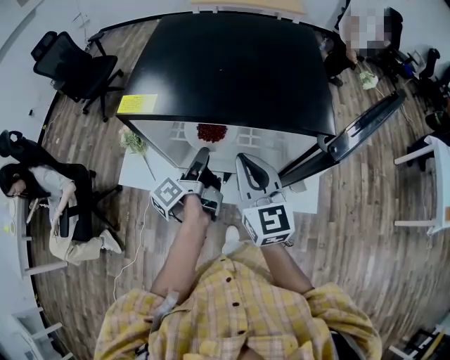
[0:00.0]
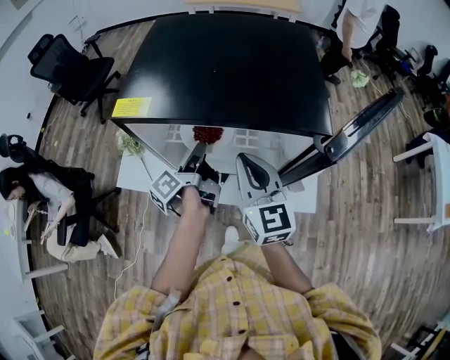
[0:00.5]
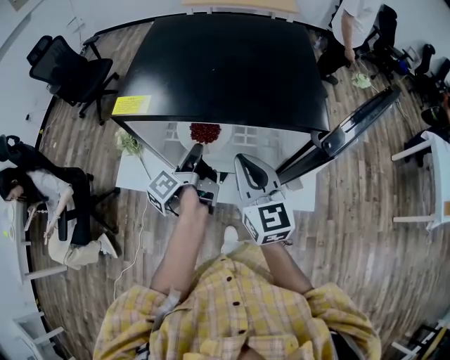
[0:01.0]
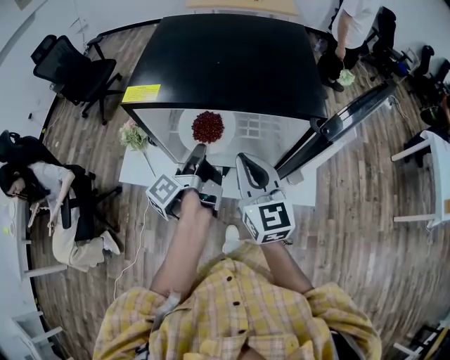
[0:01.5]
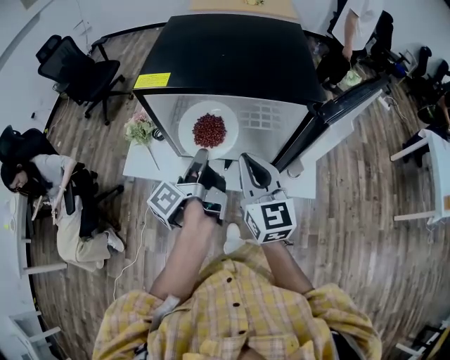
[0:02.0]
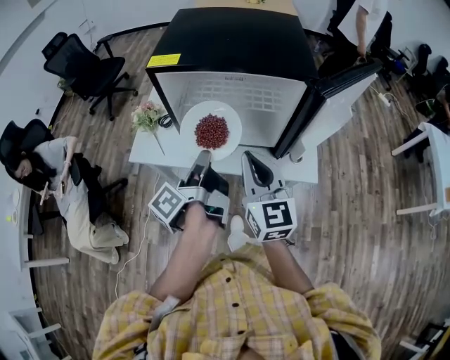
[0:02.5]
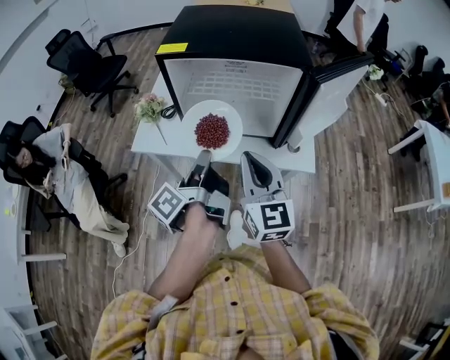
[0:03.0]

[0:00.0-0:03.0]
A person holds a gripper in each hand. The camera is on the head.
0:00.0 to 0:01.5: The left gripper closes.
0:01.5 to 0:03.0: The grippers both shift backward by roughly 20 cm.

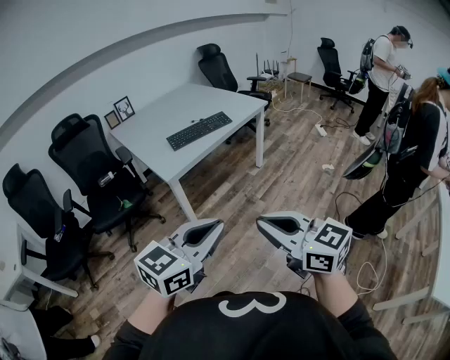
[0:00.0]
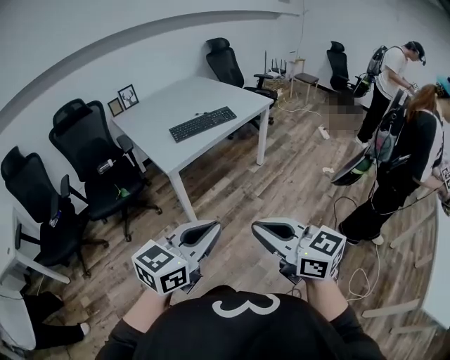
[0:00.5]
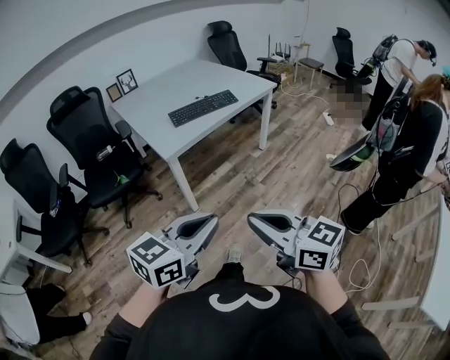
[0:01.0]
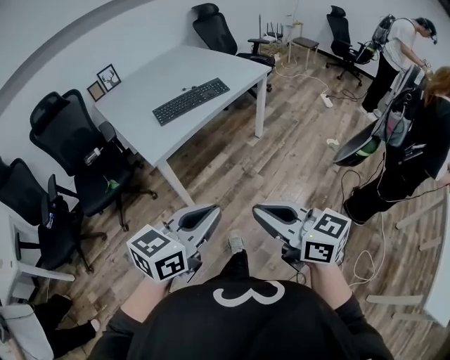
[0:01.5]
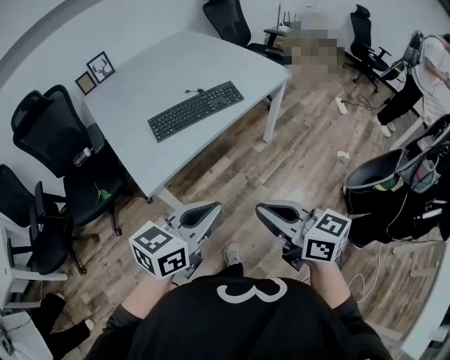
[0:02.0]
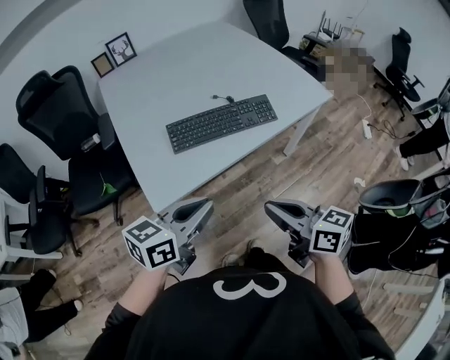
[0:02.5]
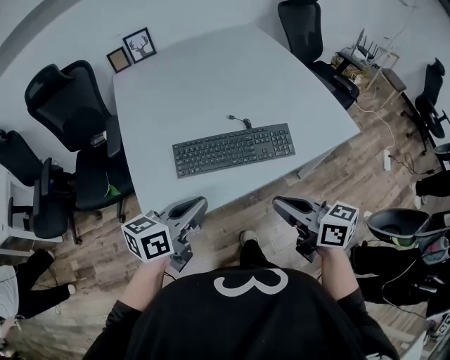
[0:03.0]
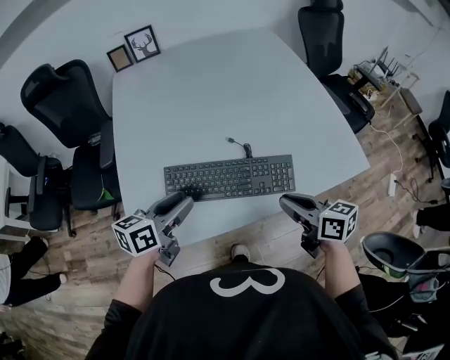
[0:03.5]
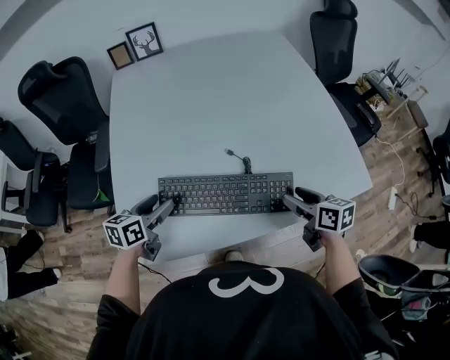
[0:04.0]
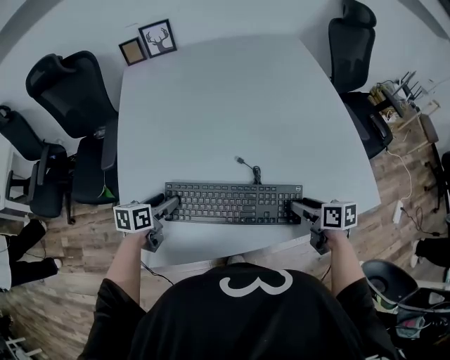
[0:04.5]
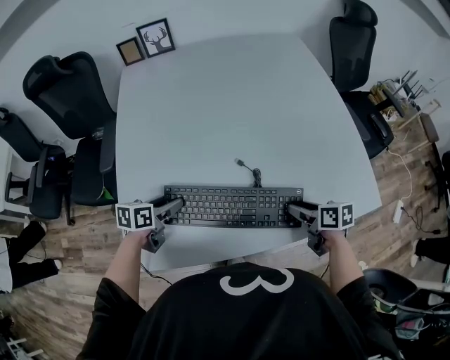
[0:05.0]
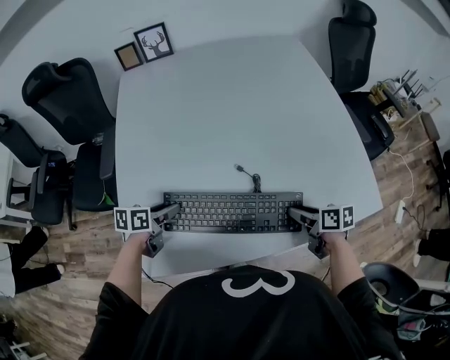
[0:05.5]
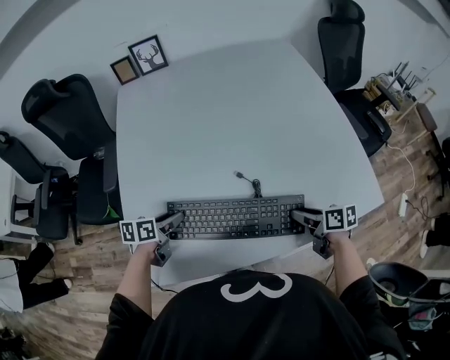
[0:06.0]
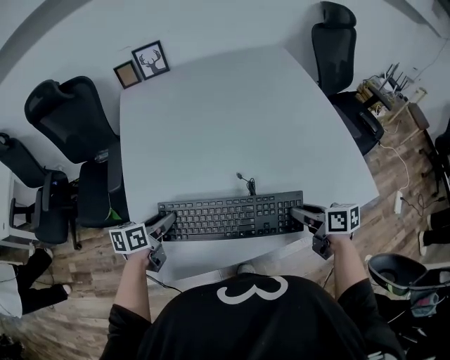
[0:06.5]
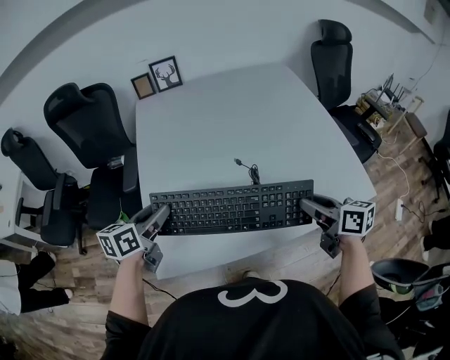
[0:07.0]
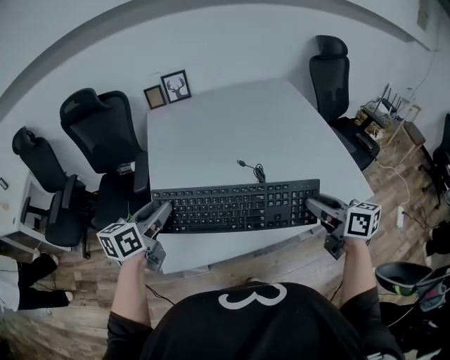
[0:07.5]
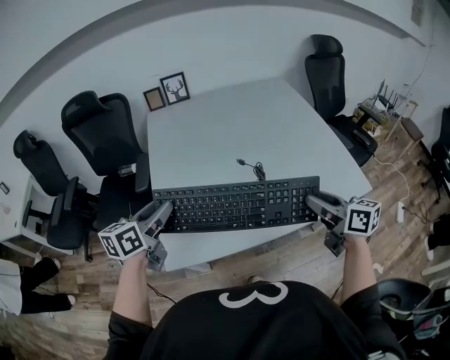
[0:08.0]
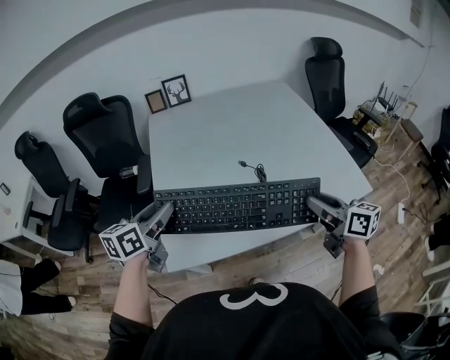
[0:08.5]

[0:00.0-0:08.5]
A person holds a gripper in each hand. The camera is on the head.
0:00.0 to 0:02.0: Both grippers move forward, some 30 cm.
0:02.0 to 0:04.0: The pair of grippers is taken approximately 50 cm. The left gripper turns by about 50 degrees, and opens its fingers. Meanwhile the right gripper rotates approximately 30 degrees, and opens up.
0:04.0 to 0:06.5: The right gripper closes.
0:06.5 to 0:08.5: The left gripper heads upward, covering some 20 cm, and swivels approximately 30 degrees; the right gripper travels upward and backward by about 20 cm, and turns by roughly 30 degrees.

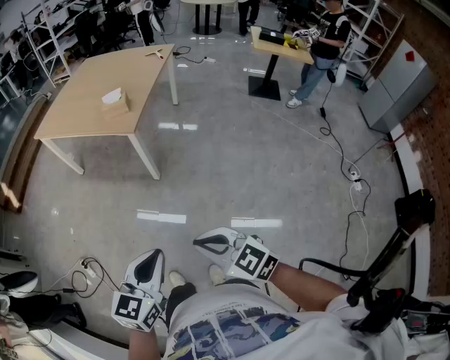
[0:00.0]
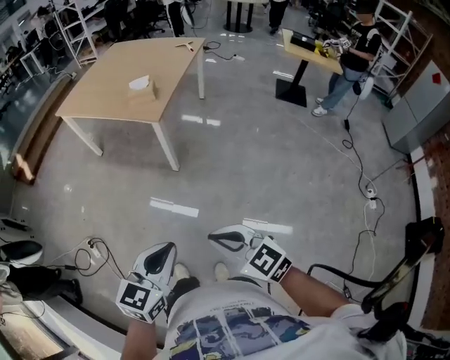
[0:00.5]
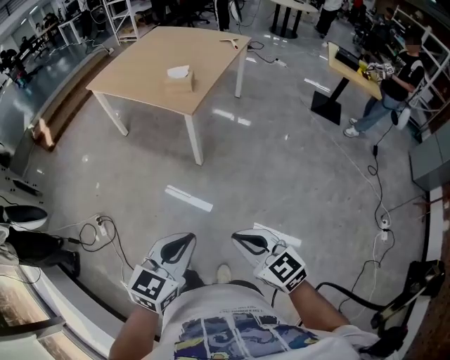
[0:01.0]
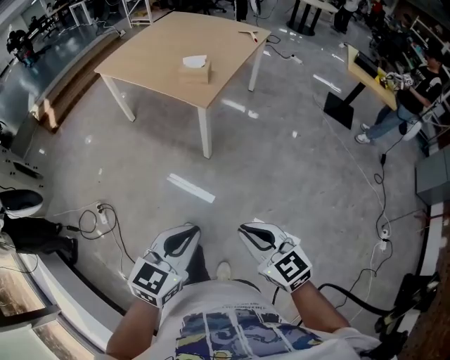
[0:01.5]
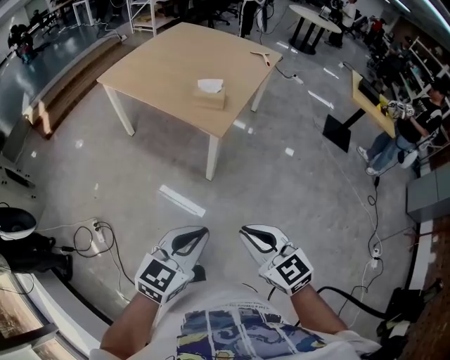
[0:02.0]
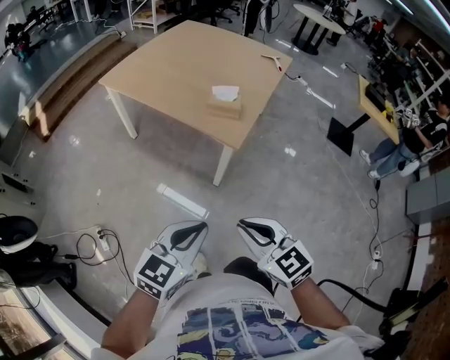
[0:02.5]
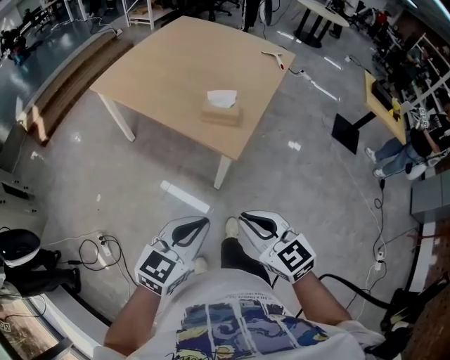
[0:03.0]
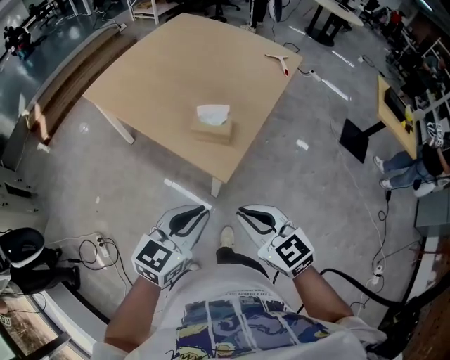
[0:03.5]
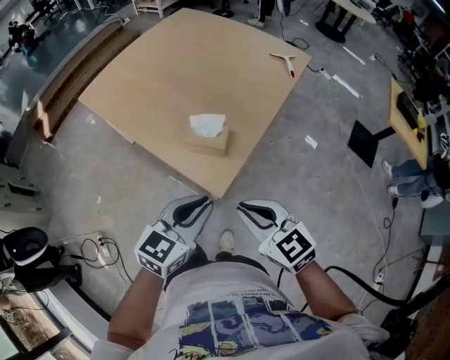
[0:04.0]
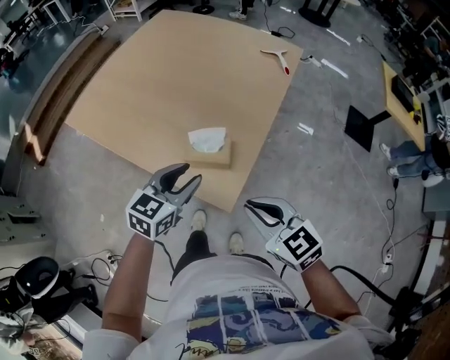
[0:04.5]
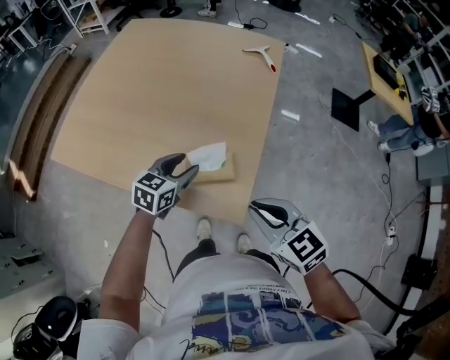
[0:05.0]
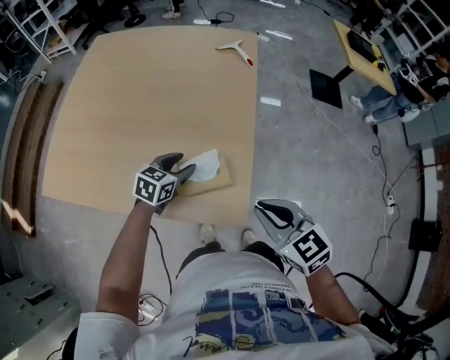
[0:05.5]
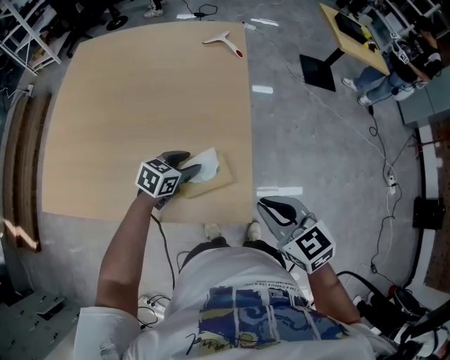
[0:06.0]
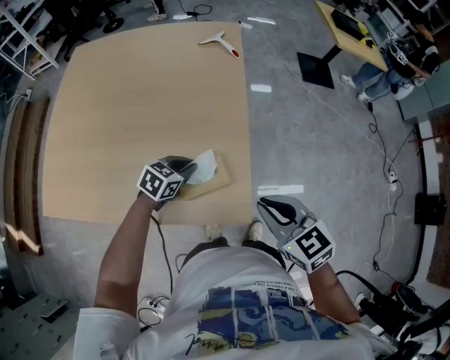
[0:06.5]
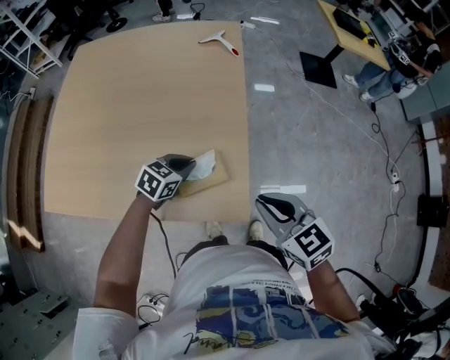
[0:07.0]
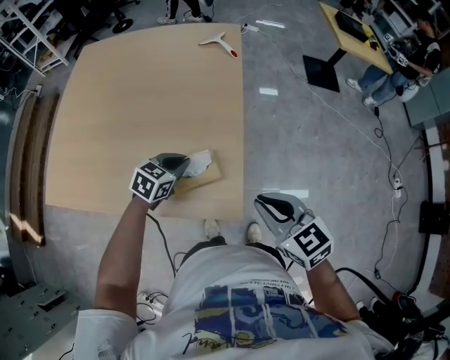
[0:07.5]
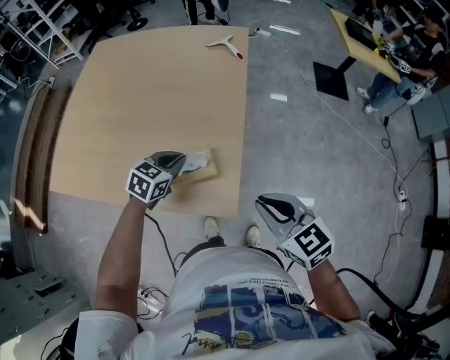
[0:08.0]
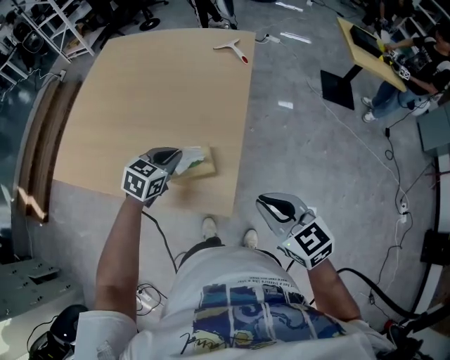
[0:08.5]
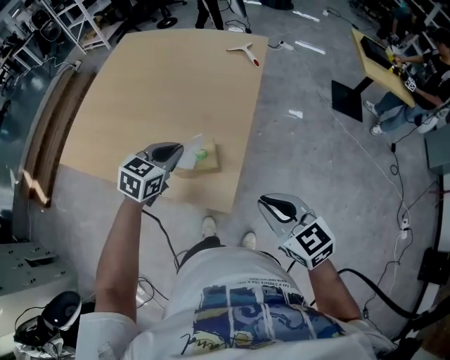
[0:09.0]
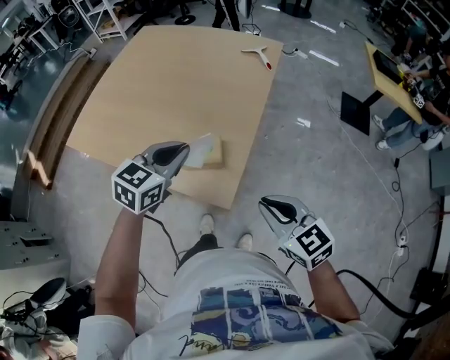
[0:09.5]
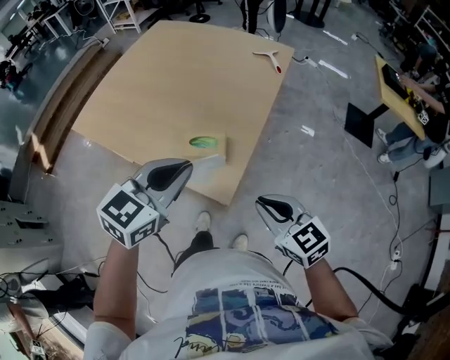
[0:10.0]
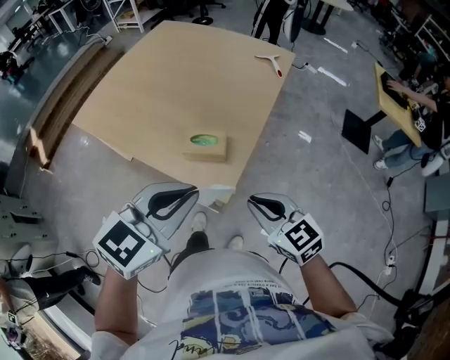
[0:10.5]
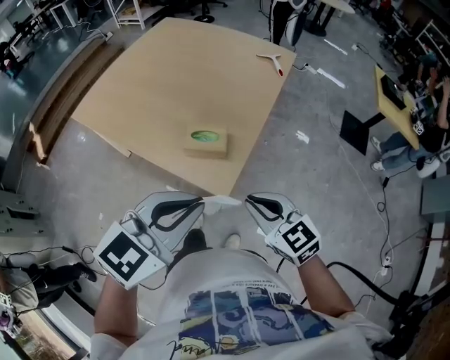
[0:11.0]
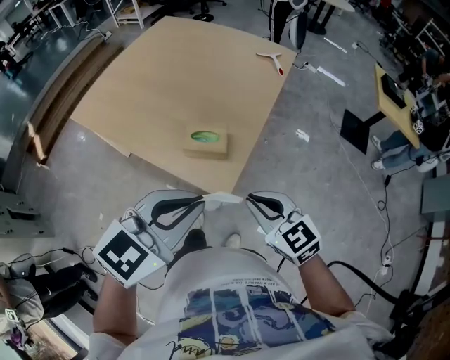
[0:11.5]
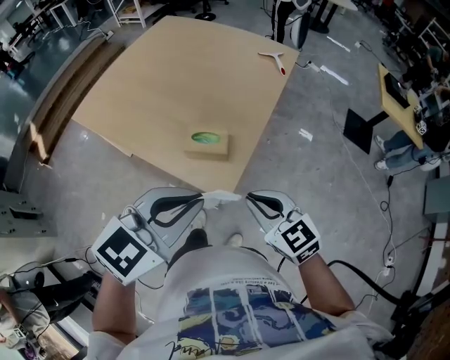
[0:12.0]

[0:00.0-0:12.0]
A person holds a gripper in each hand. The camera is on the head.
0:00.0 to 0:02.0: Both grippers travel together forward, roughly 20 cm.
0:02.0 to 0:04.0: The two grippers go roughly 40 cm forward.
0:04.0 to 0:06.0: The left gripper ends up approximately 35 cm from where it was, rotates approximately 50 degrees, and opens. The right gripper changes place by approximately 15 cm, and rotates roughly 40 degrees.
0:06.0 to 0:08.0: The right gripper goes some 5 cm to the right, while the left gripper shifts about 5 cm upward, and closes.
0:08.0 to 0:10.0: The right gripper travels backward by about 5 cm. Meanwhile the left gripper shifts about 30 cm upward and backward, and changes its angle by some 30 degrees.
0:10.0 to 0:12.0: The left gripper is displaced backward by roughly 10 cm.

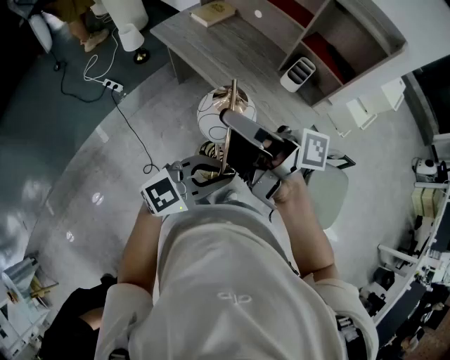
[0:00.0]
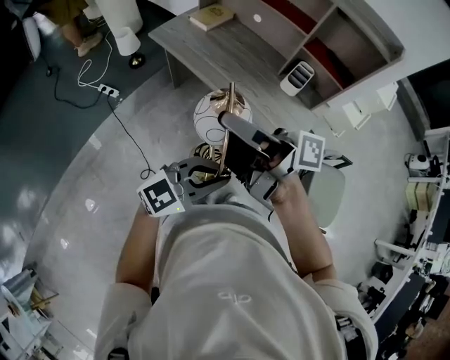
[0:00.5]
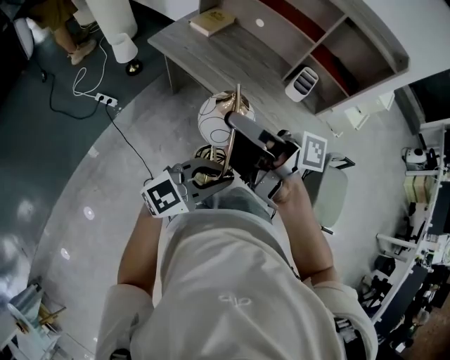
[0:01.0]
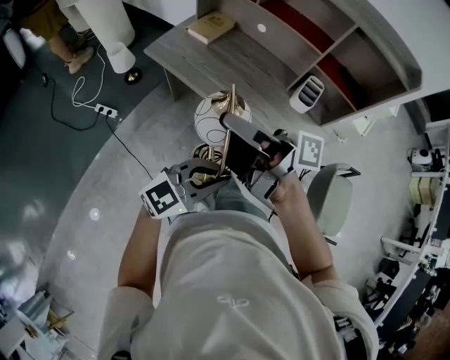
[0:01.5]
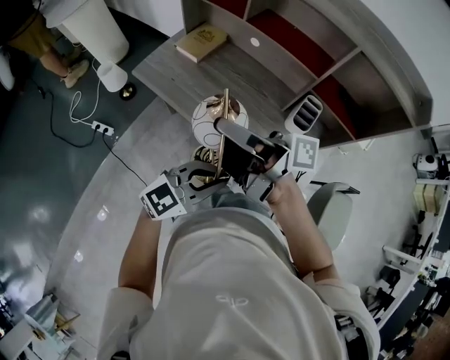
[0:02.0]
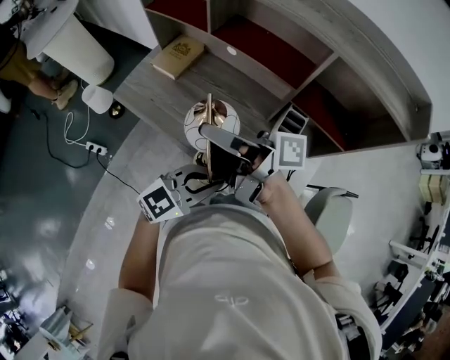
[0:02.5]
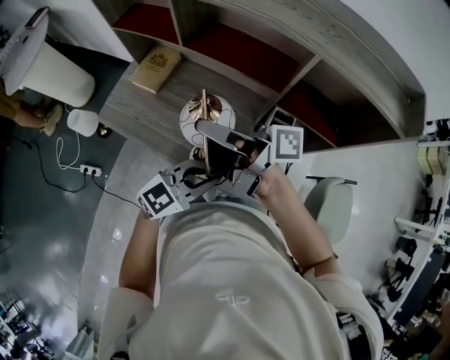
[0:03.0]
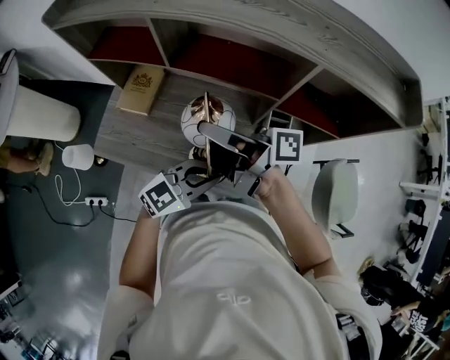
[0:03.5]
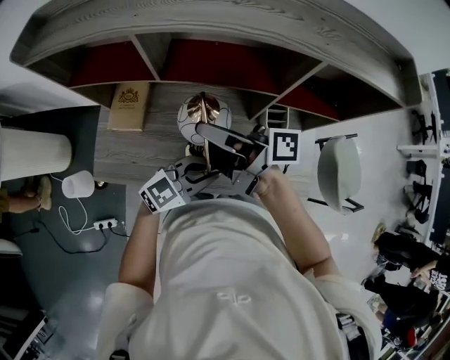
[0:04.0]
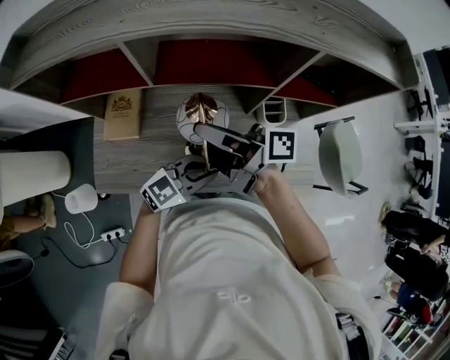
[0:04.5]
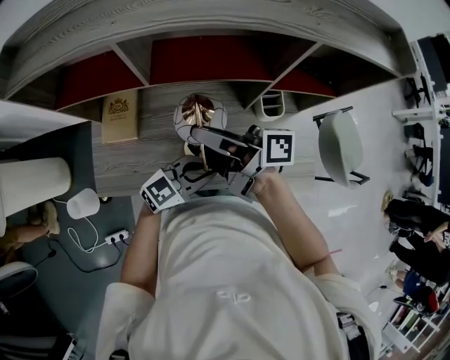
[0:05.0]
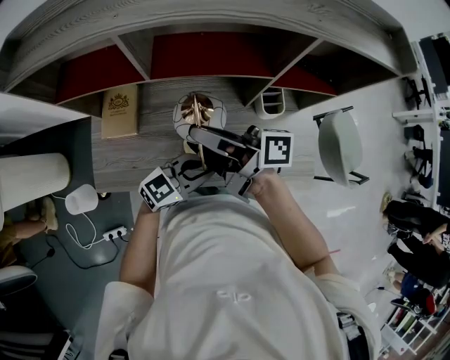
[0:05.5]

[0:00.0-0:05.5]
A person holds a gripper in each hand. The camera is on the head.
0:00.0 to 0:02.0: The right gripper moves about 25 cm, while the left gripper moves about 25 cm.
0:02.0 to 0:03.5: The left gripper shifts by roughly 20 cm, and turns by some 20 degrees; the right gripper shifts by roughly 20 cm.
0:03.5 to 0:05.5: The left gripper changes place by roughly 10 cm; the right gripper moves approximately 5 cm.
